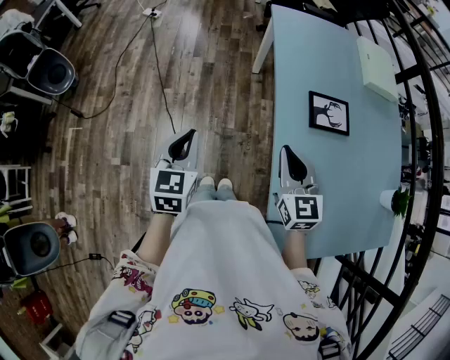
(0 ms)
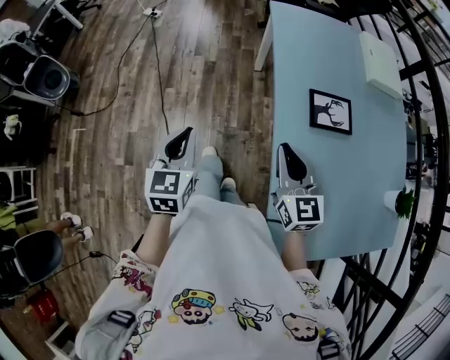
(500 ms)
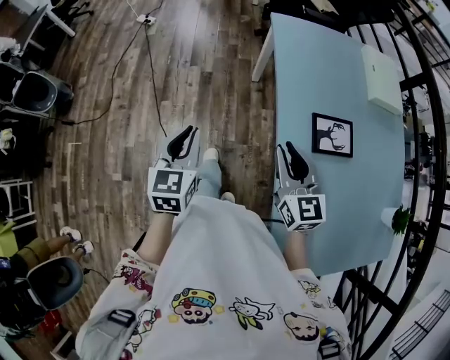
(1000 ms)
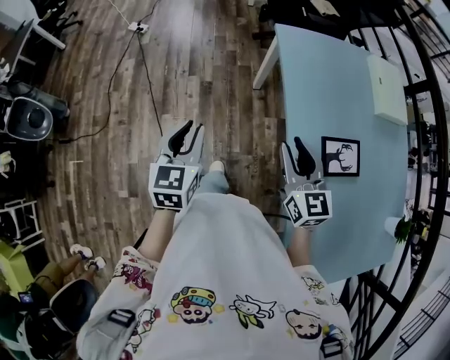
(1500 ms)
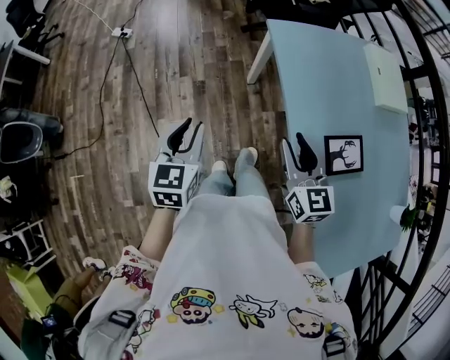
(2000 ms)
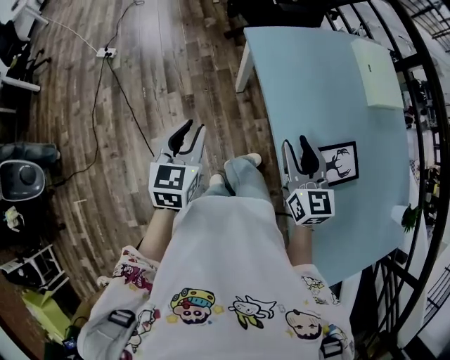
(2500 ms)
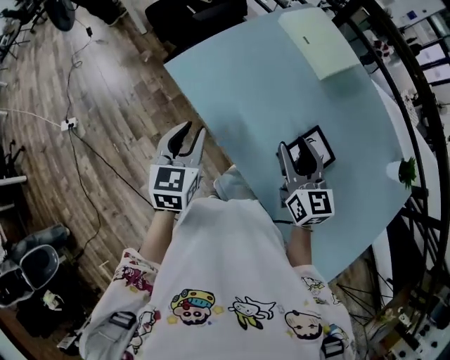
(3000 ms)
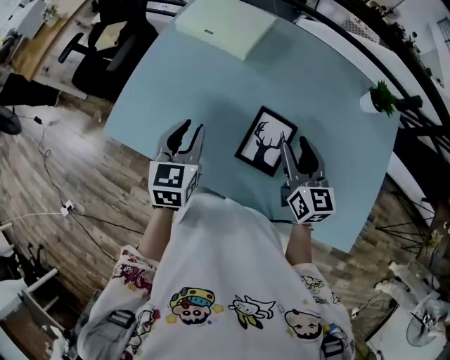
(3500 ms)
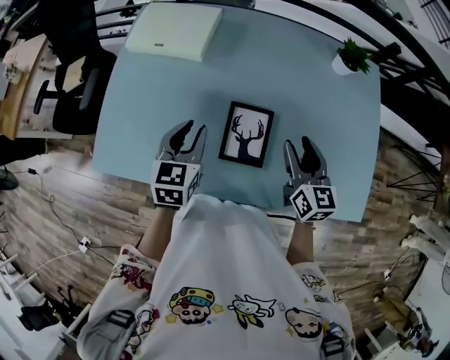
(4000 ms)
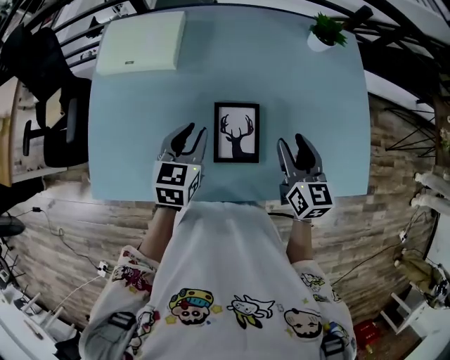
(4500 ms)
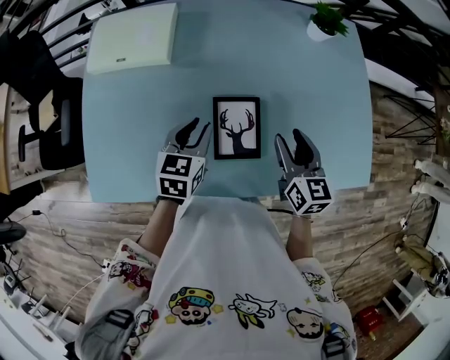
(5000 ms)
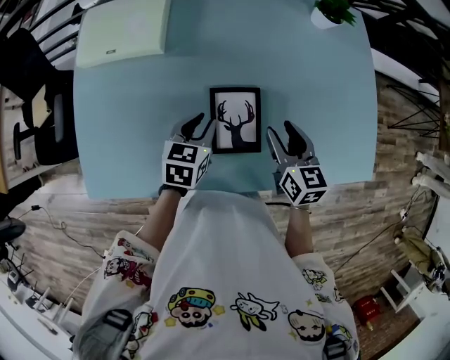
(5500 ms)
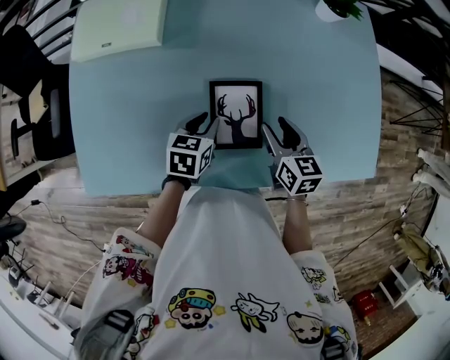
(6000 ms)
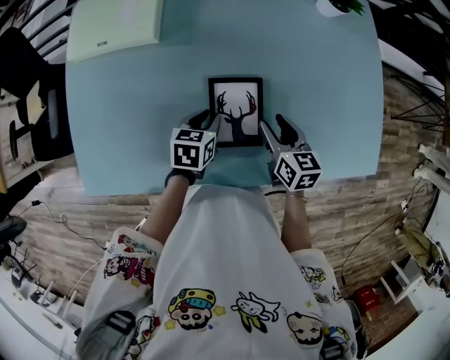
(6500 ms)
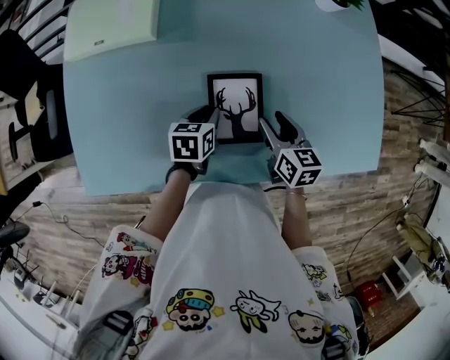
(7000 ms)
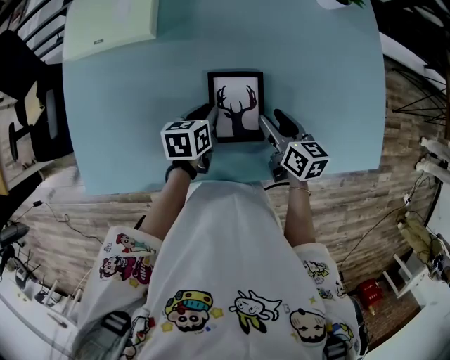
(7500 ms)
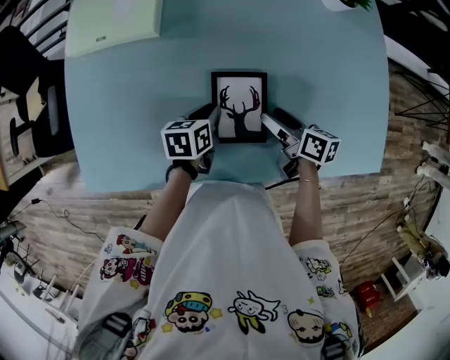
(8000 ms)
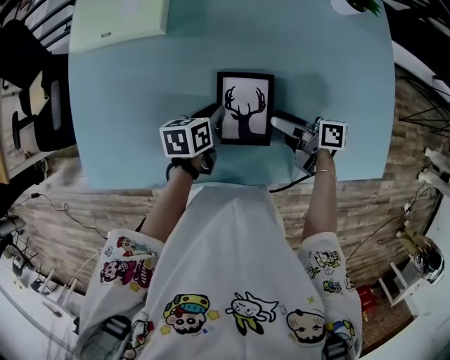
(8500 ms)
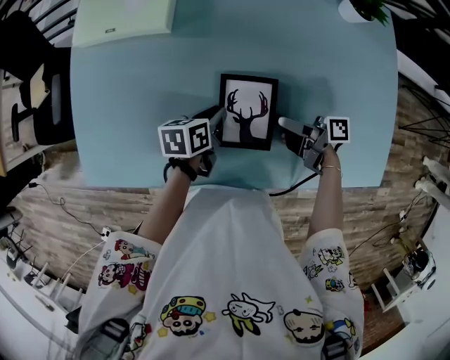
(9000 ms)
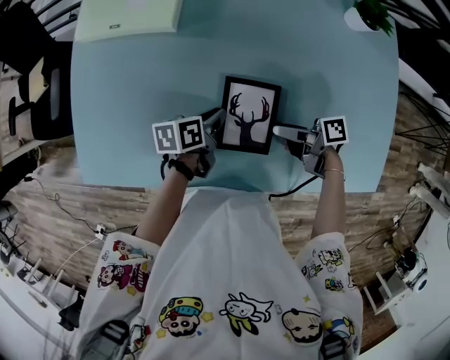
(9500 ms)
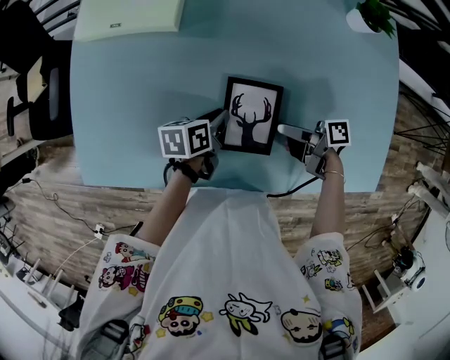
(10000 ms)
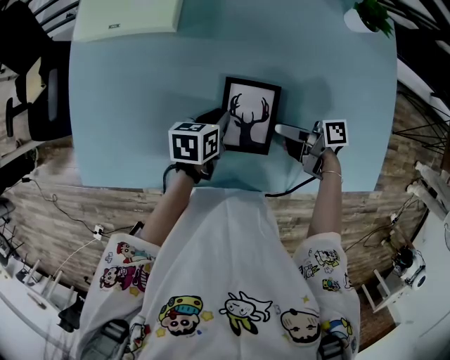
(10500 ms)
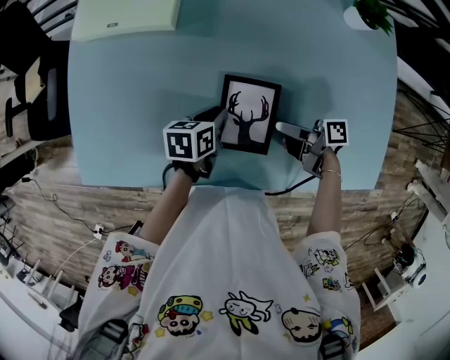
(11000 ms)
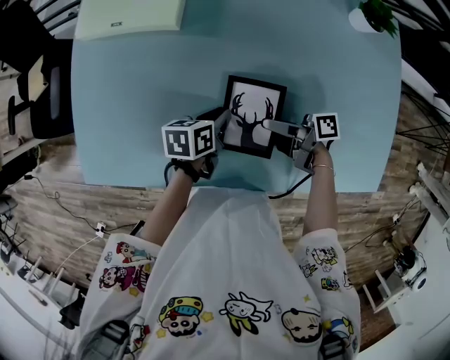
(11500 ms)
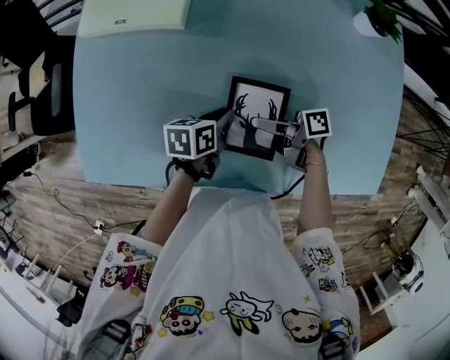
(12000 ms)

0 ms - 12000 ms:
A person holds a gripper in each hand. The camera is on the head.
0 ms - 2000 ms: The two grippers go some 30 cm forward. The right gripper opens up. The left gripper opens.
2000 ms - 4000 ms: The left gripper moves some 50 cm, and changes its angle by about 70 degrees. The right gripper moves approximately 35 cm, and turns by approximately 80 degrees.
4000 ms - 6000 ms: The left gripper is displaced downward and to the right by roughly 15 cm, and turns by some 30 degrees, while the right gripper heads downward, covering roughly 10 cm, and rotates approximately 20 degrees.
6000 ms - 8000 ms: The right gripper changes its angle by about 40 degrees, and opens.
8000 ms - 10000 ms: The right gripper swivels roughly 40 degrees.
10000 ms - 12000 ms: The right gripper changes place by about 10 cm.

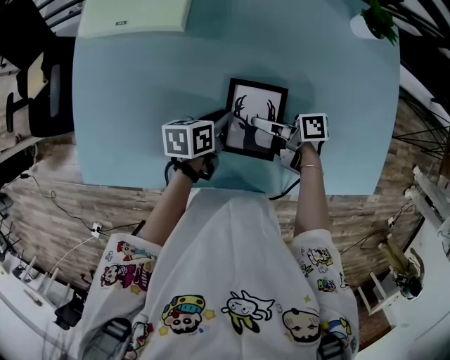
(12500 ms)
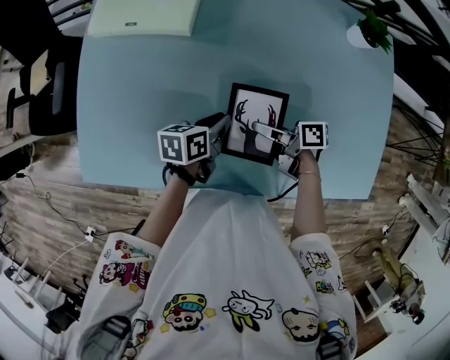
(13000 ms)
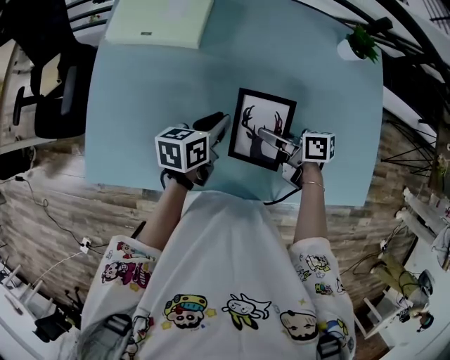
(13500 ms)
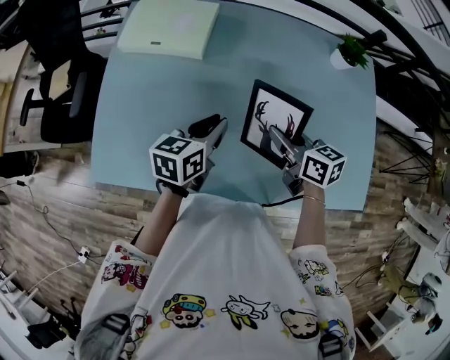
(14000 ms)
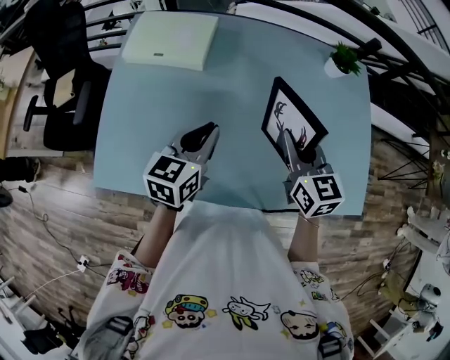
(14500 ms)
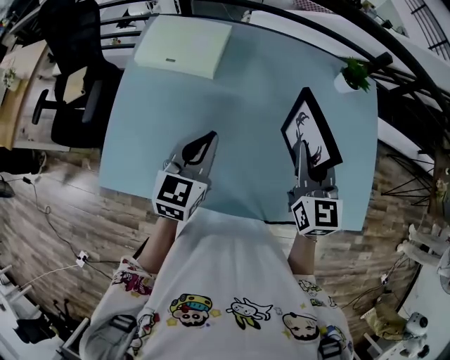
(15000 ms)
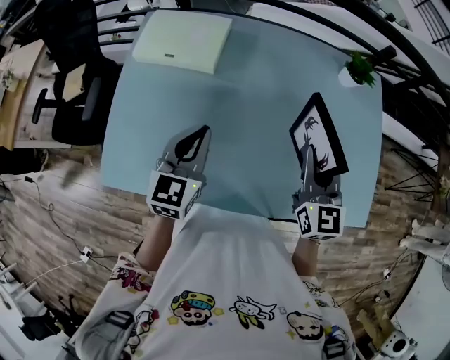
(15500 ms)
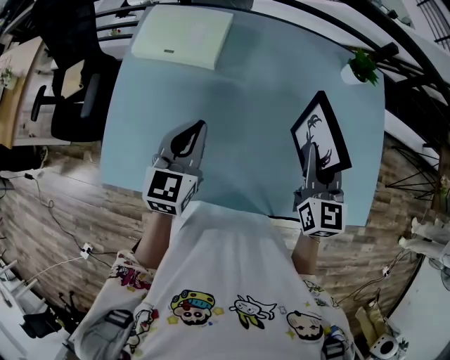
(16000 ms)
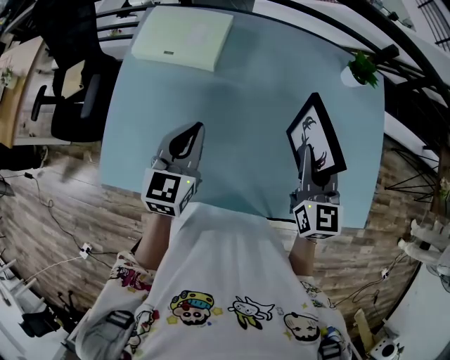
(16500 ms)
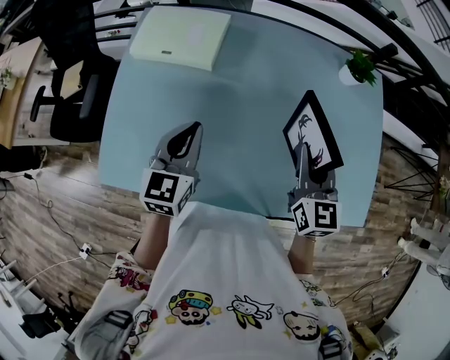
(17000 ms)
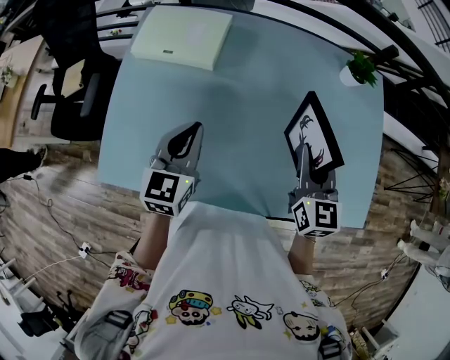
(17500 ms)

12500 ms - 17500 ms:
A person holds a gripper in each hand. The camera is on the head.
12500 ms - 15000 ms: The two grippers go about 25 cm upward. The left gripper turns by roughly 60 degrees, while the right gripper swivels approximately 100 degrees.
15000 ms - 17500 ms: The grippers stay close to where they were, moving slightly.

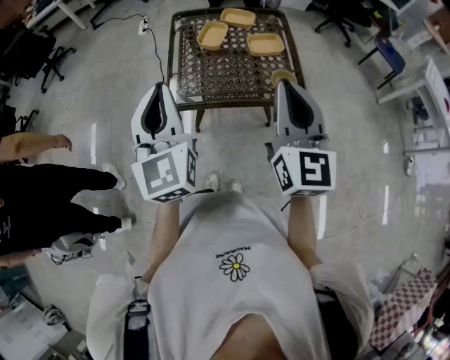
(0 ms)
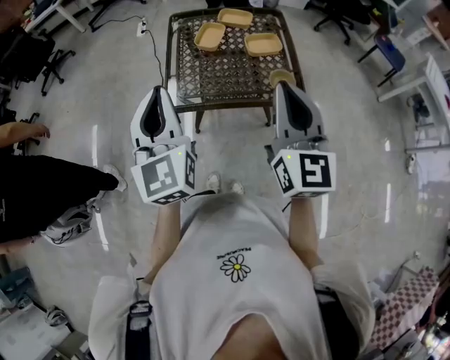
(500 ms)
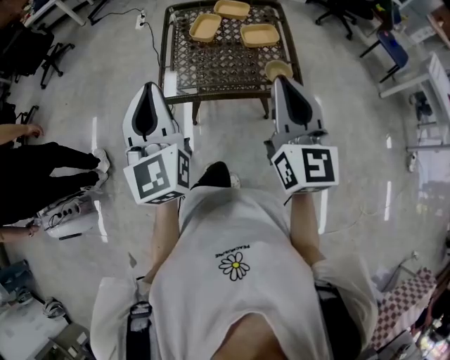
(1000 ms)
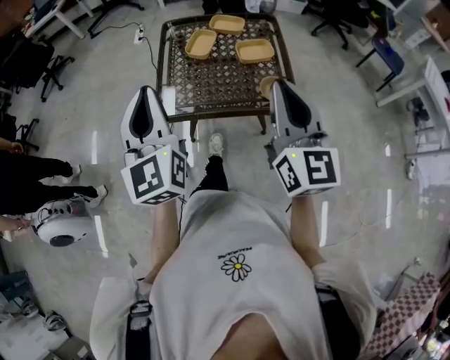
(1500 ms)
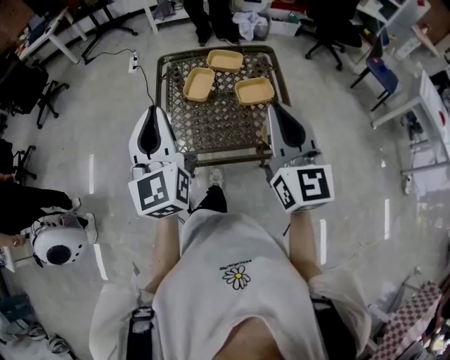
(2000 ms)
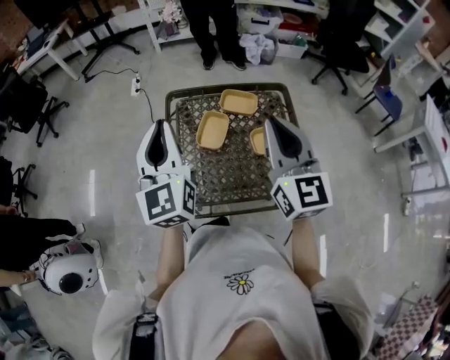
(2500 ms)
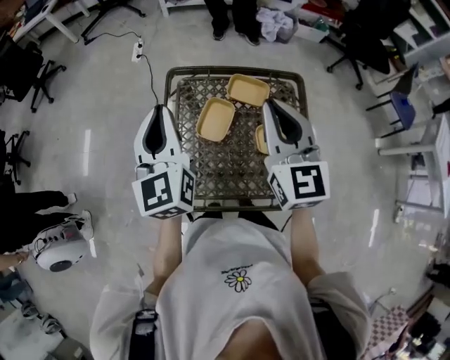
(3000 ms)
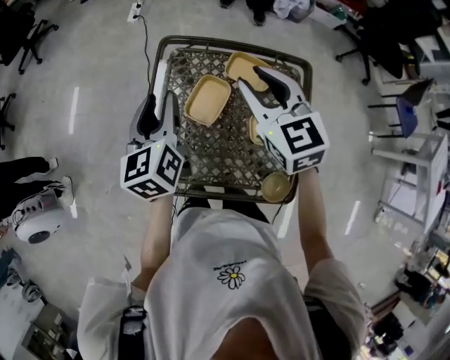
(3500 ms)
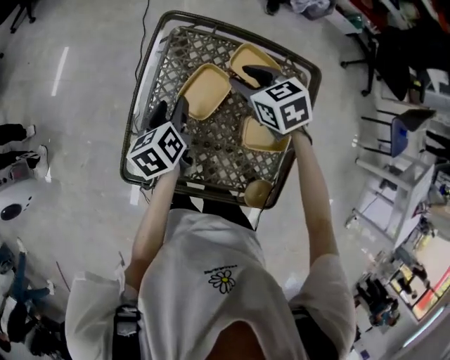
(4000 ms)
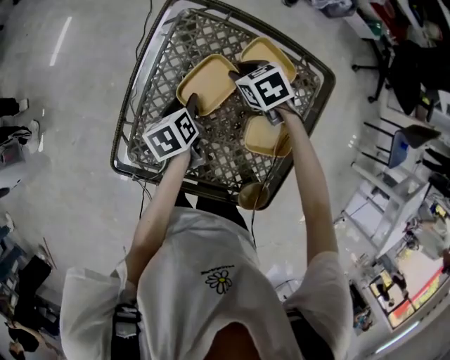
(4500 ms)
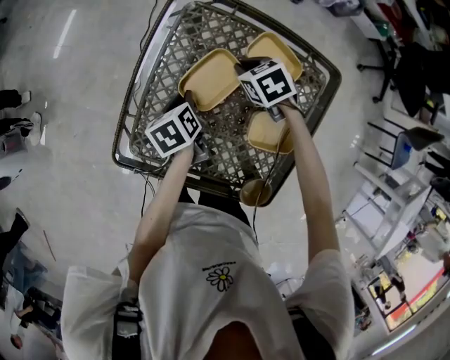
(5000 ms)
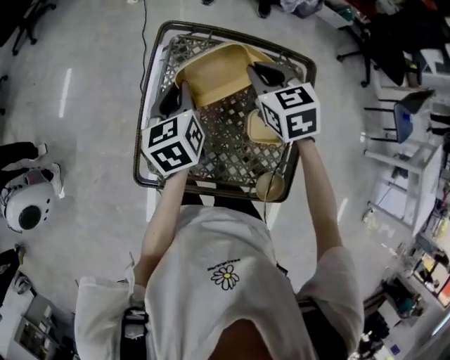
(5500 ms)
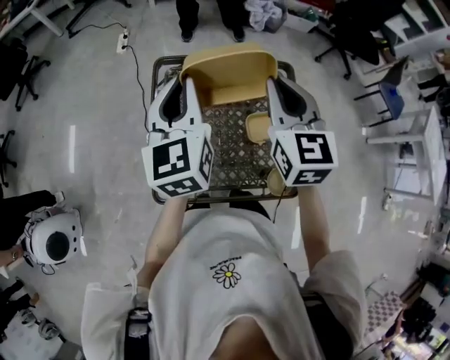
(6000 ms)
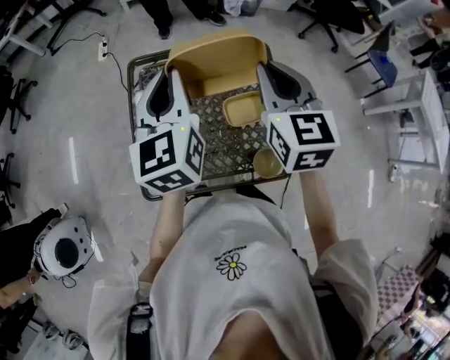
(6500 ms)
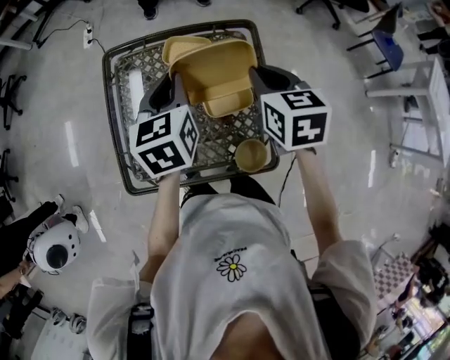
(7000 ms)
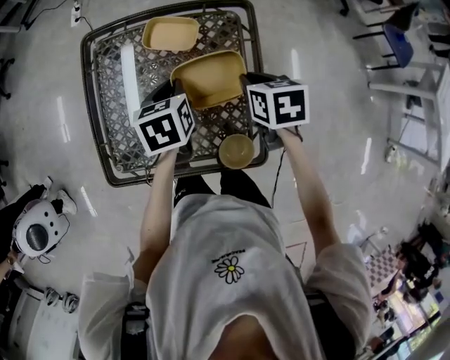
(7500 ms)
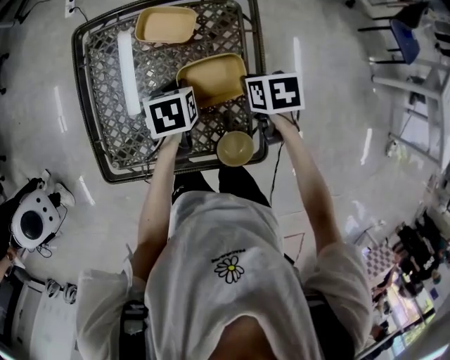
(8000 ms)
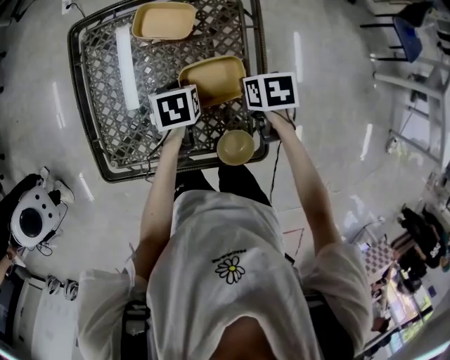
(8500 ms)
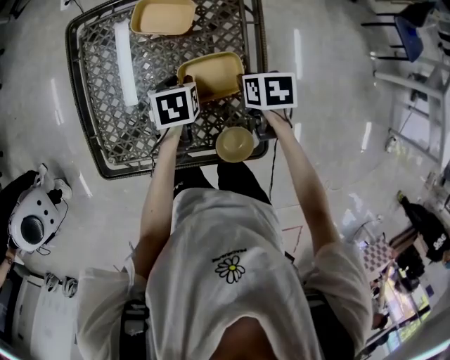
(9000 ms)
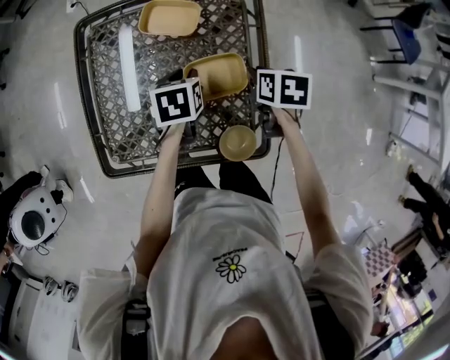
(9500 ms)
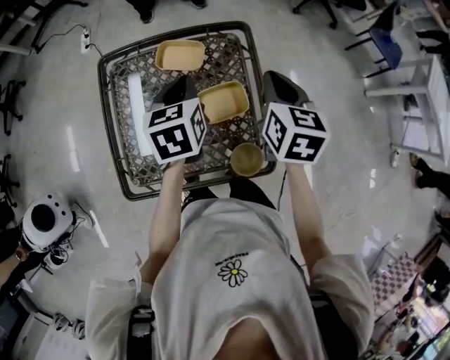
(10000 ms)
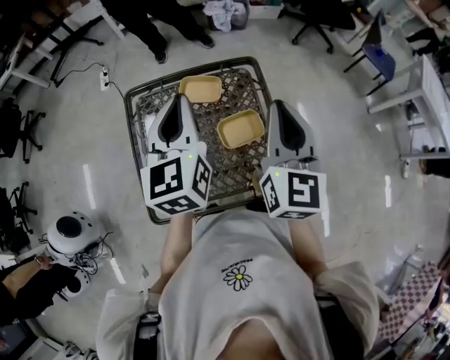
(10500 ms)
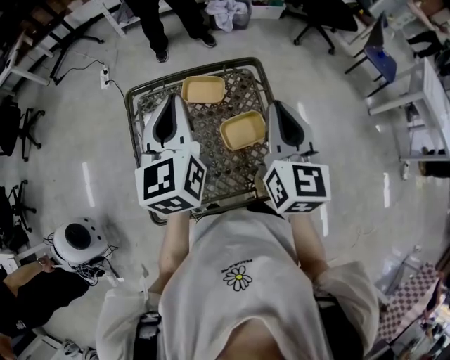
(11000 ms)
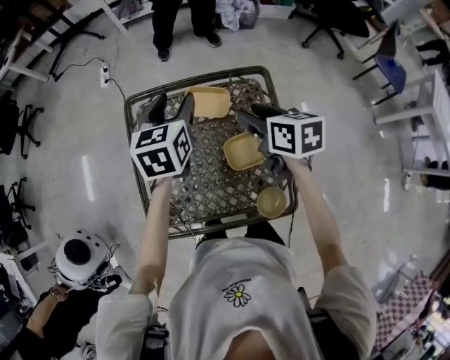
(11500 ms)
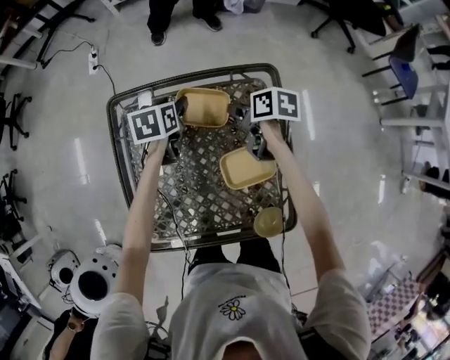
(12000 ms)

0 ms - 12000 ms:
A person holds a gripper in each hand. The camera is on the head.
0 ms - 2000 ms: The grippers both shift forward by roughly 15 cm.
2000 ms - 4000 ms: The left gripper is displaced downward by some 35 cm, angles its fingers downward, by about 50 degrees, and opens its fingers, while the right gripper changes place by roughly 50 cm, tips its fingers downward by roughly 50 degrees, and opens up.
4000 ms - 6000 ms: The grippers both shift upward by some 25 cm. The left gripper points its fingers about 30 degrees further upward, and closes its fingers; the right gripper angles its fingers upward, by some 30 degrees, and closes up.
6000 ms - 8000 ms: Both grippers move downward and to the right, approximately 40 cm. The left gripper points its fingers approximately 60 degrees further downward, while the right gripper tilts its fingers about 50 degrees downward.
8000 ms - 10000 ms: Both grippers travel together upward, some 20 cm. The left gripper rotates some 30 degrees, and opens and closes again. Meanwhile the right gripper tilts its fingers roughly 30 degrees upward.
10000 ms - 12000 ms: The right gripper shifts approximately 30 cm downward, forward and to the left, turns by approximately 50 degrees, and opens up, while the left gripper shifts about 25 cm forward, downward and to the left, and opens.
